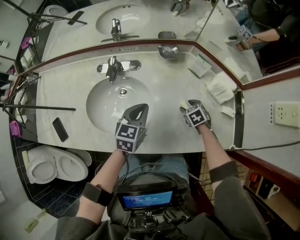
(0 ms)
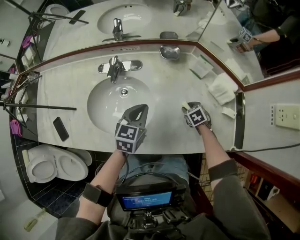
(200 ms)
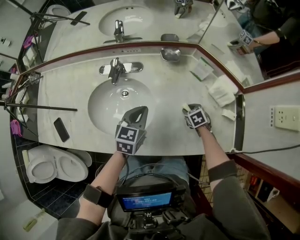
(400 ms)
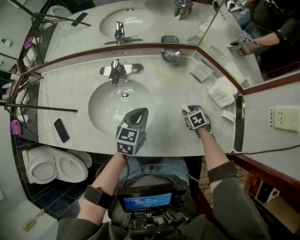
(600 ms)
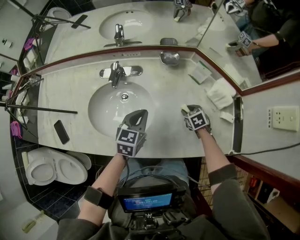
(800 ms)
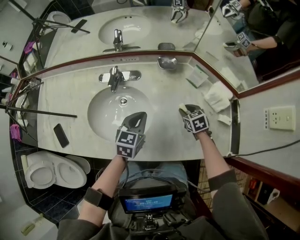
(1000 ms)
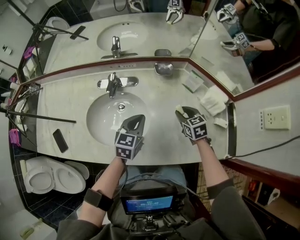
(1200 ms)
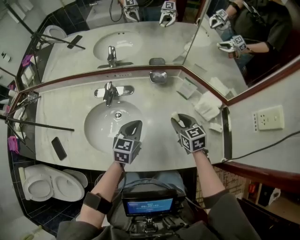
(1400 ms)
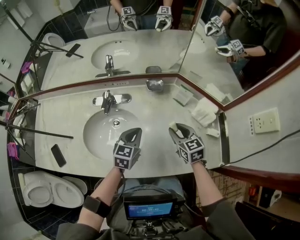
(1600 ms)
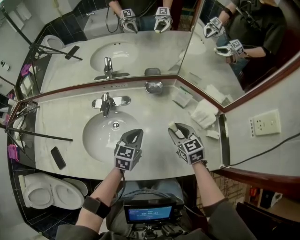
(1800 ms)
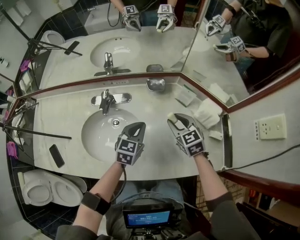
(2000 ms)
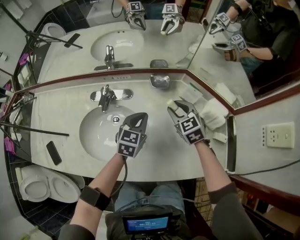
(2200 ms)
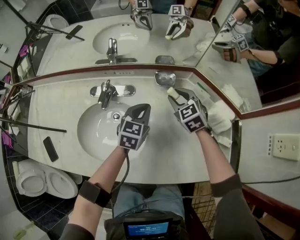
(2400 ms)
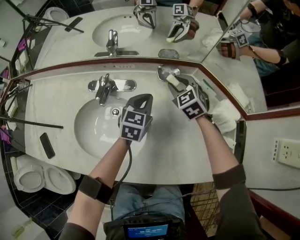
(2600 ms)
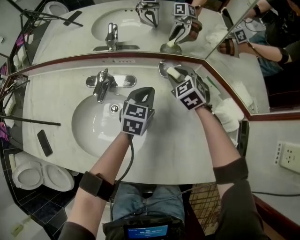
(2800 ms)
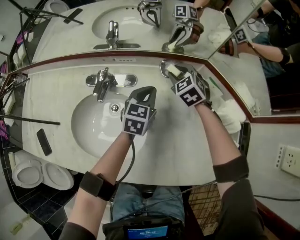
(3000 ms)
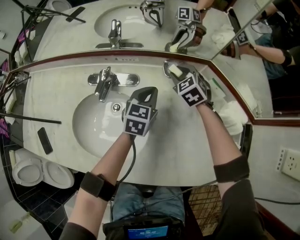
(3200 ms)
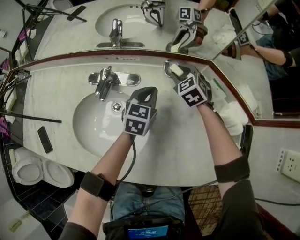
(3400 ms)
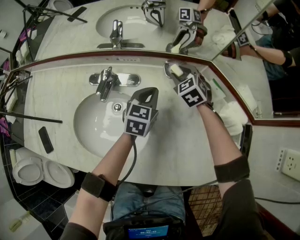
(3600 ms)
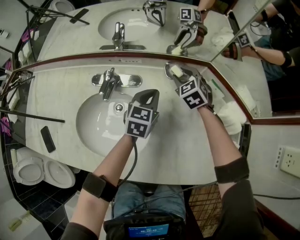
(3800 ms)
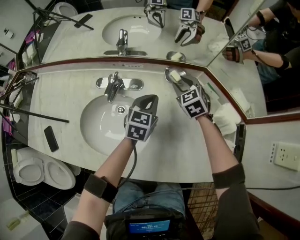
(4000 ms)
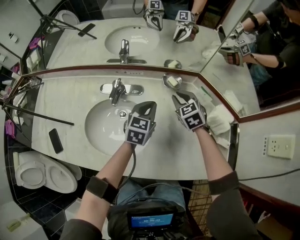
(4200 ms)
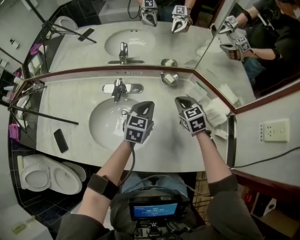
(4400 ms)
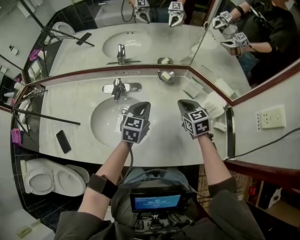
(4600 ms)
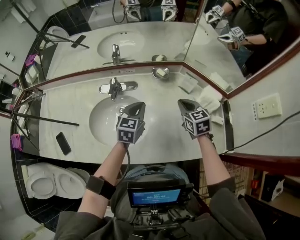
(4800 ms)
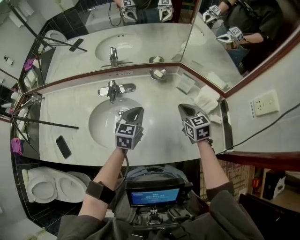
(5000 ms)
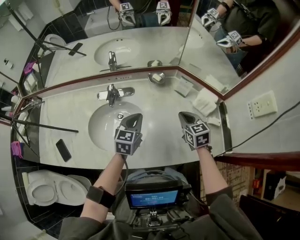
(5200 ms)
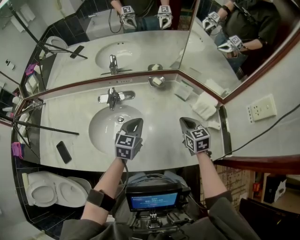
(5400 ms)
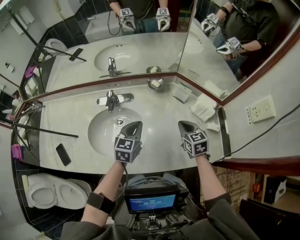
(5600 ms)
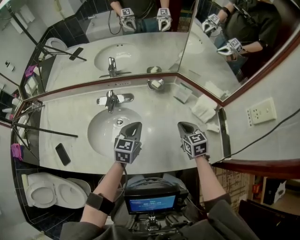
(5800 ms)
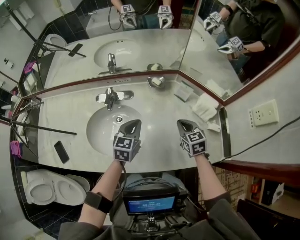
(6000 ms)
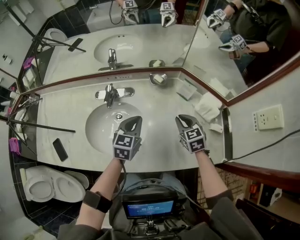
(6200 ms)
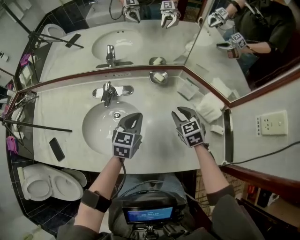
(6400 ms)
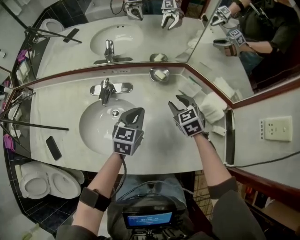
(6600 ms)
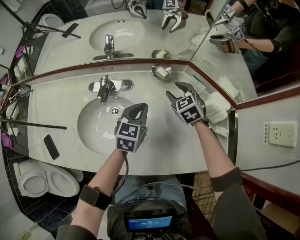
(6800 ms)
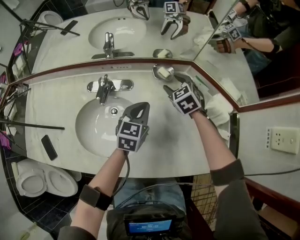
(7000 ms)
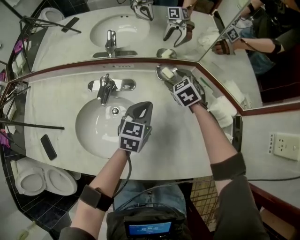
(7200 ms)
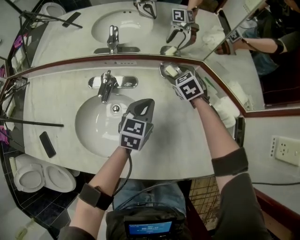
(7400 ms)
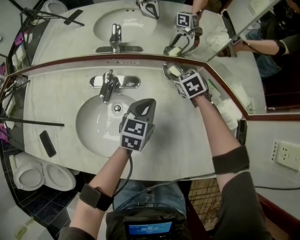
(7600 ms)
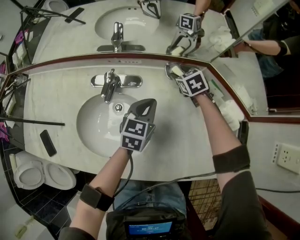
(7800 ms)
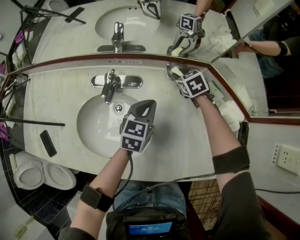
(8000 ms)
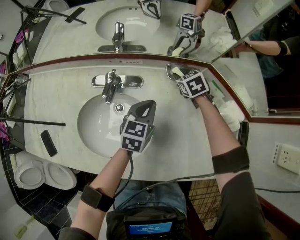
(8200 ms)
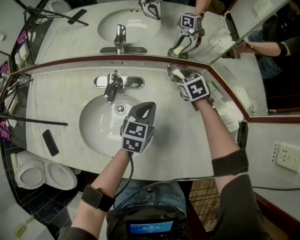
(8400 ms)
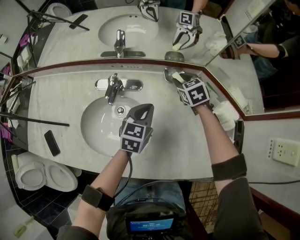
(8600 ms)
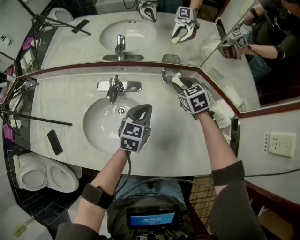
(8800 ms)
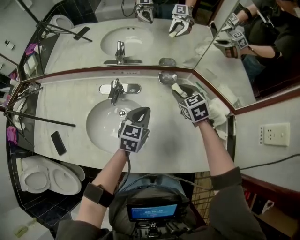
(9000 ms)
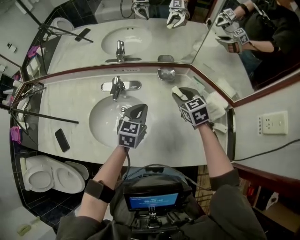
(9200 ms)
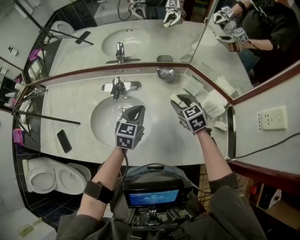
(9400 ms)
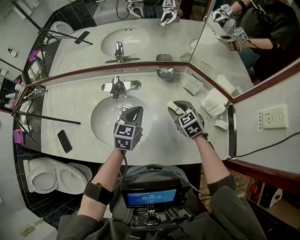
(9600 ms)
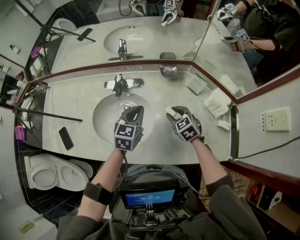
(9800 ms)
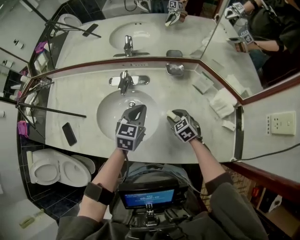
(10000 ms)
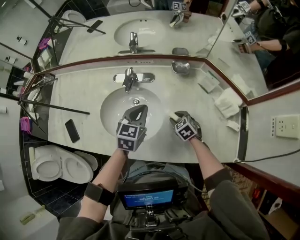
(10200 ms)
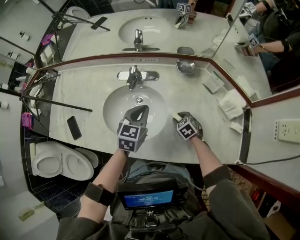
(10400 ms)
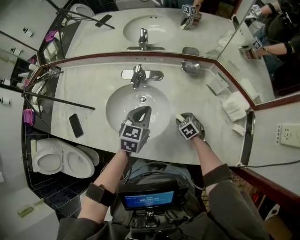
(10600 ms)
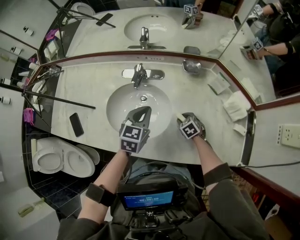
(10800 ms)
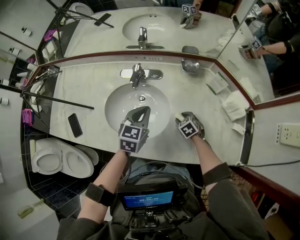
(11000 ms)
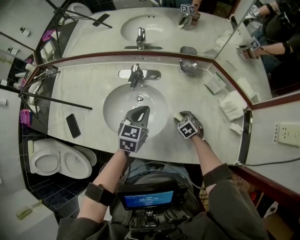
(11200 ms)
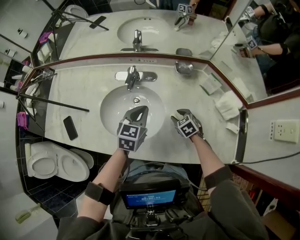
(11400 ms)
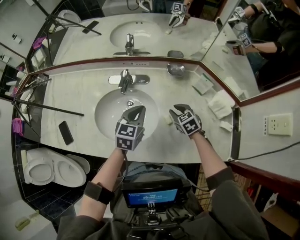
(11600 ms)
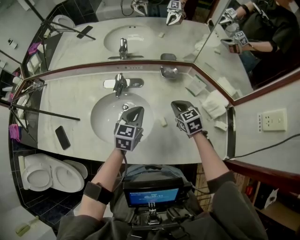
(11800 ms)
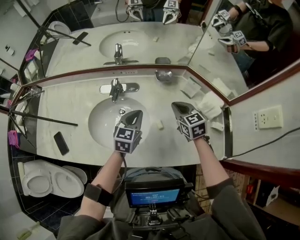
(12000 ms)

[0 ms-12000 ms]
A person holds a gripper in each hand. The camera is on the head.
0 ms to 1600 ms: The right gripper travels upward by roughly 20 cm, tilts its fingers approximately 30 degrees upward, and closes its fingers.
1600 ms to 3000 ms: The right gripper heads forward, covering roughly 25 cm, and rotates approximately 40 degrees, while the left gripper heads forward and downward, covering about 20 cm.
3000 ms to 4400 ms: The right gripper goes about 20 cm backward and upward, and closes up; the left gripper heads upward and backward, covering approximately 15 cm.
4400 ms to 6000 ms: The left gripper shifts approximately 10 cm backward. The right gripper shifts roughly 15 cm backward and to the right.
6000 ms to 7600 ms: The right gripper travels forward by about 25 cm, rotates some 20 degrees, and opens, while the left gripper heads forward and downward, covering some 15 cm.
7600 ms to 9000 ms: The right gripper is displaced upward and backward by about 15 cm, and closes. The left gripper travels upward and backward by roughly 10 cm.
9000 ms to 10400 ms: The right gripper goes some 25 cm downward, backward and to the left, and swivels roughly 20 degrees, while the left gripper heads to the left, covering roughly 10 cm.
10400 ms to 12000 ms: The right gripper moves upward, some 20 cm, turns by roughly 30 degrees, and closes up.

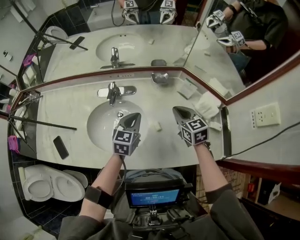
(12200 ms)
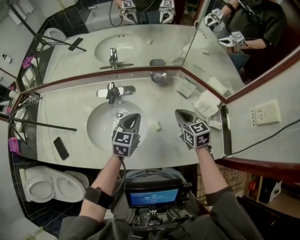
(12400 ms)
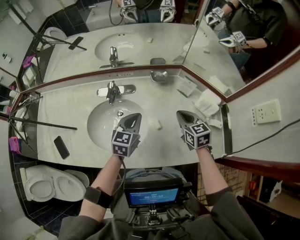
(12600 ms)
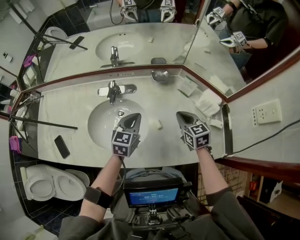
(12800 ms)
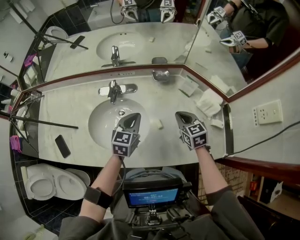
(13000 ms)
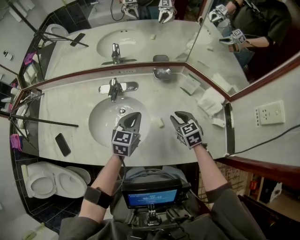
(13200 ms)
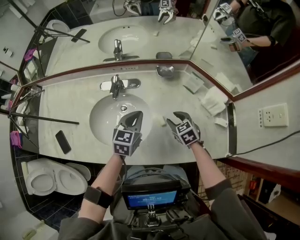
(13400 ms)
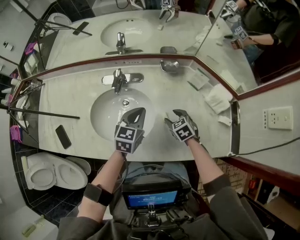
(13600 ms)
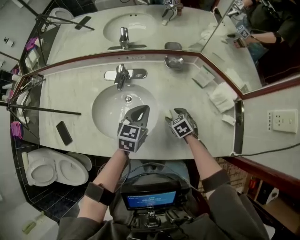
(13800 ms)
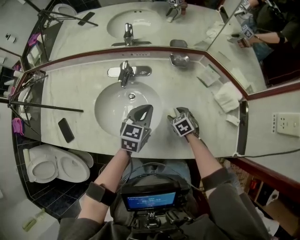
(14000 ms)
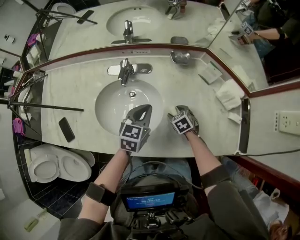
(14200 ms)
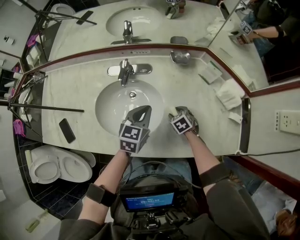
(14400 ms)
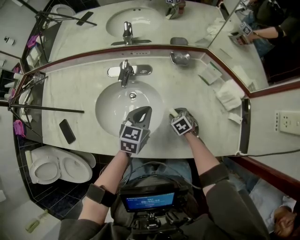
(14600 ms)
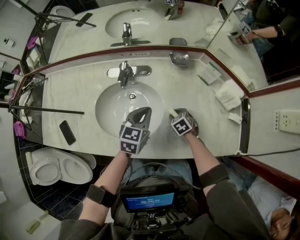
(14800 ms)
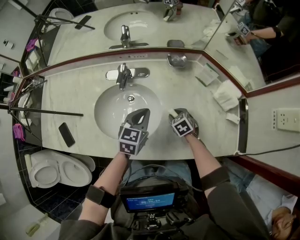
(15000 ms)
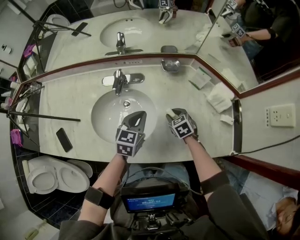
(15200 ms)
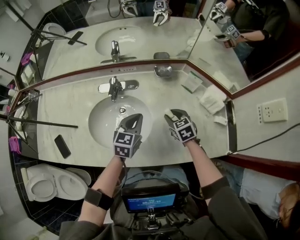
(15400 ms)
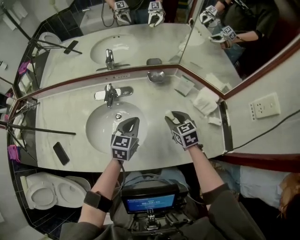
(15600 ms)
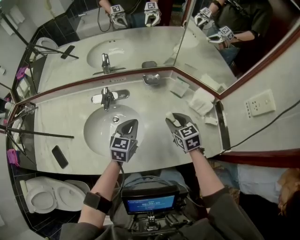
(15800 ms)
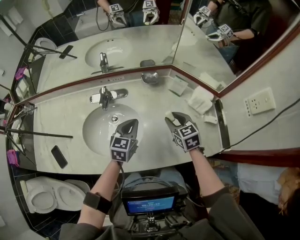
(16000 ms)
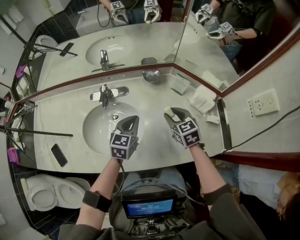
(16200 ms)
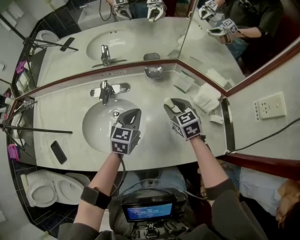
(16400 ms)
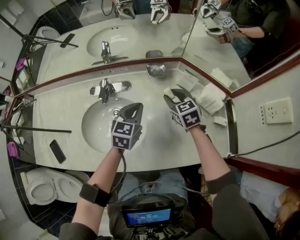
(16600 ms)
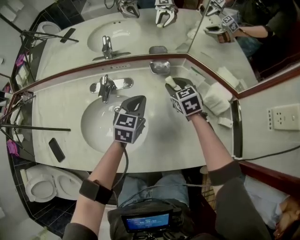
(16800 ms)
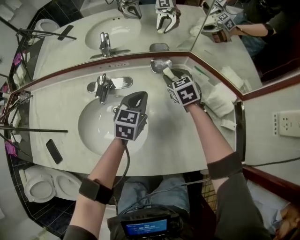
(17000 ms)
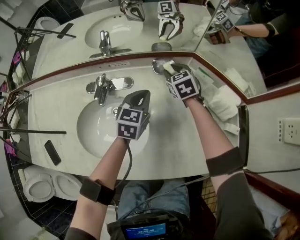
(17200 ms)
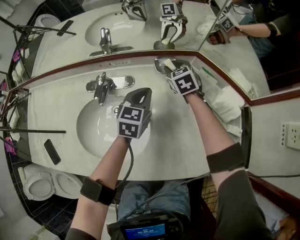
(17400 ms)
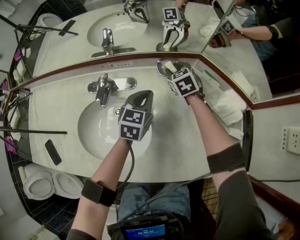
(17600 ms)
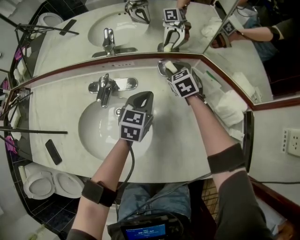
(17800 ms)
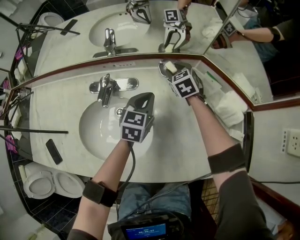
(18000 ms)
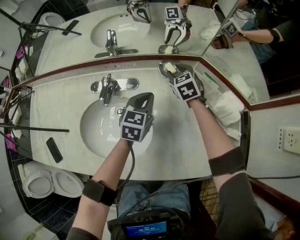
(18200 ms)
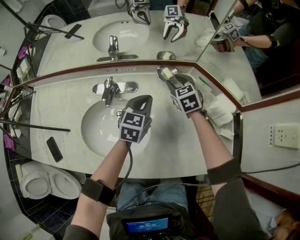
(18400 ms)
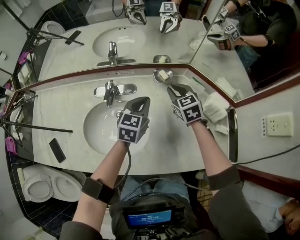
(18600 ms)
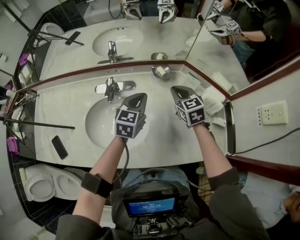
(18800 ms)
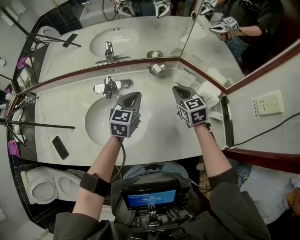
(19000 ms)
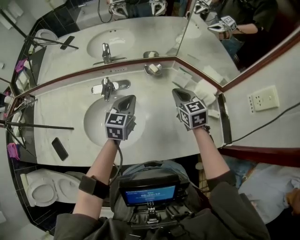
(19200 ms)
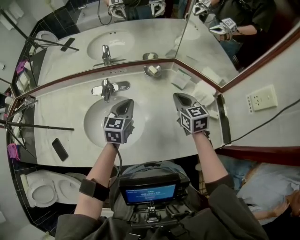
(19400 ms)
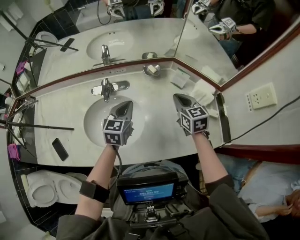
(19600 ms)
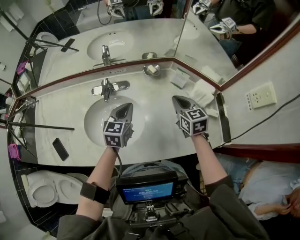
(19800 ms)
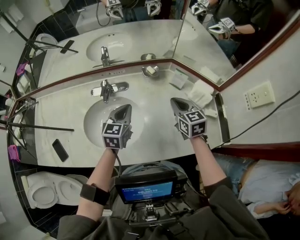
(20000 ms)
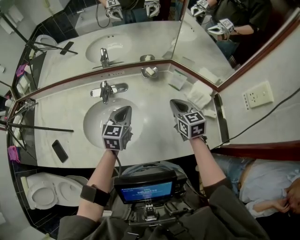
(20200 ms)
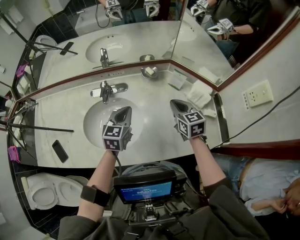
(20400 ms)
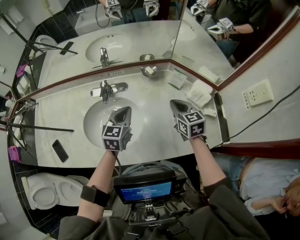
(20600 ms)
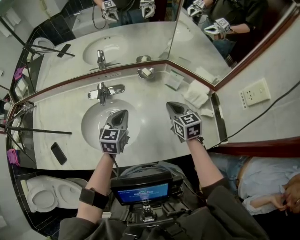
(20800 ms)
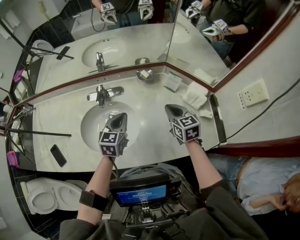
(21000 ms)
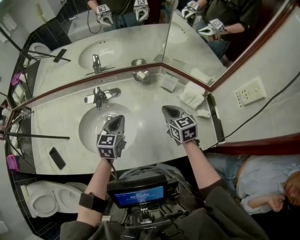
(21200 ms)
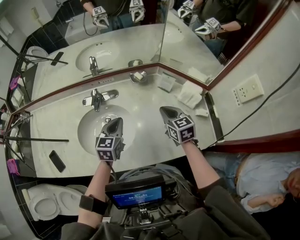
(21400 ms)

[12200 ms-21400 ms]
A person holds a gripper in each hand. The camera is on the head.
12200 ms to 13800 ms: The right gripper shifts some 20 cm downward, swivels about 30 degrees, and opens up.
13800 ms to 15200 ms: The right gripper closes up.
15200 ms to 16800 ms: The right gripper heads forward and upward, covering some 20 cm. Meanwhile the left gripper is displaced forward and to the right by about 10 cm.
16800 ms to 18400 ms: The right gripper heads forward, covering about 5 cm.
18400 ms to 19800 ms: The right gripper shifts some 20 cm backward and upward, rotates approximately 20 degrees, and closes its fingers. Meanwhile the left gripper heads backward and upward, covering about 15 cm.
19800 ms to 21400 ms: There are only small adjustments of the grippers.

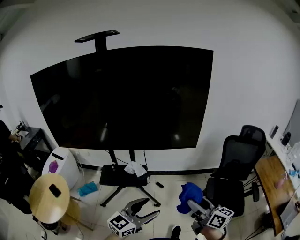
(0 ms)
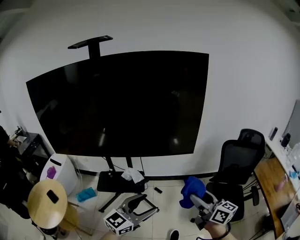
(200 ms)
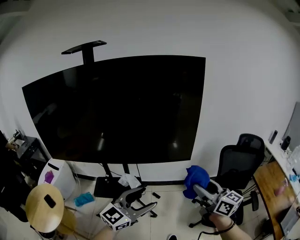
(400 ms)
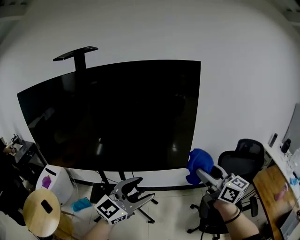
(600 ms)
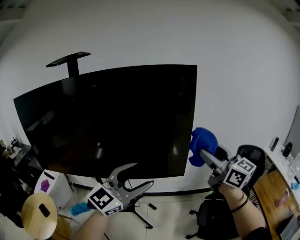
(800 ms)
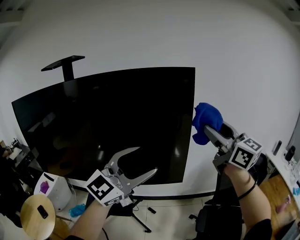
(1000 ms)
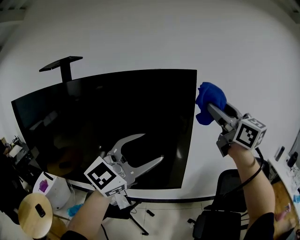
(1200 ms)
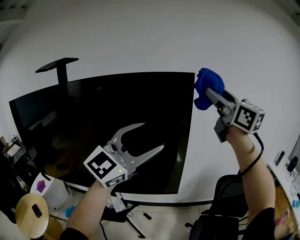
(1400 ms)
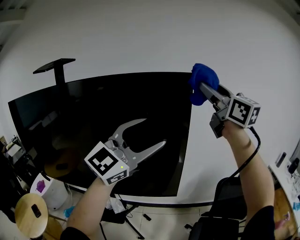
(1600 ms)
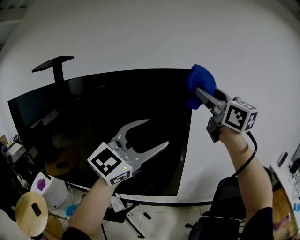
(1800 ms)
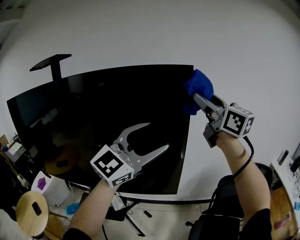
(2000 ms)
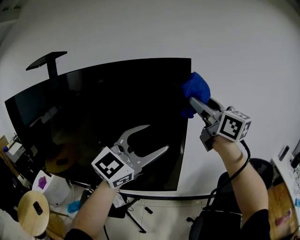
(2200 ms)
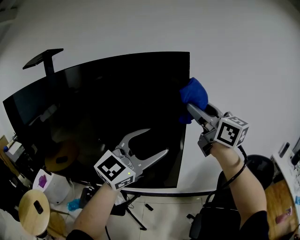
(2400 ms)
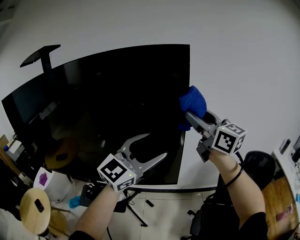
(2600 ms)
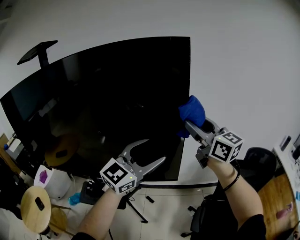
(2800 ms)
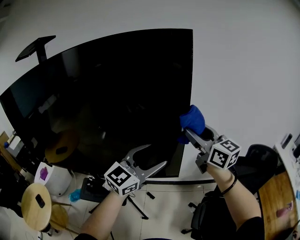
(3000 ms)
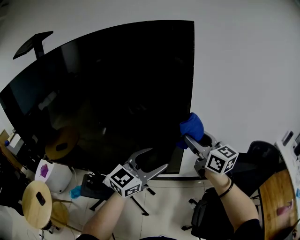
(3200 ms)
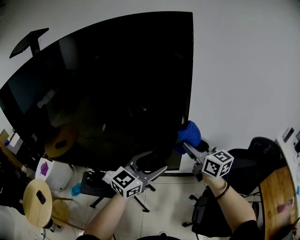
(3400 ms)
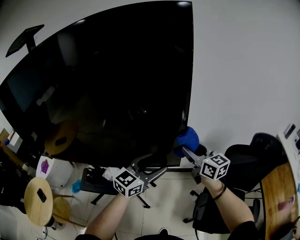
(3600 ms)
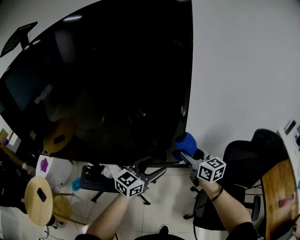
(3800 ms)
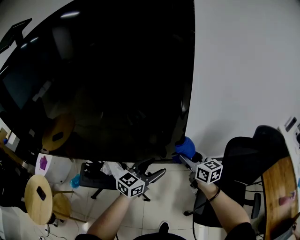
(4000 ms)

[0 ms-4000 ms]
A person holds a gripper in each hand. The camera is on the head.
0 ms to 1400 ms: Both grippers move upward and forward, some 60 cm. The left gripper turns by approximately 40 degrees. The right gripper swivels approximately 40 degrees.
1400 ms to 2600 ms: The left gripper shifts approximately 15 cm downward and forward; the right gripper goes some 15 cm downward.
2600 ms to 4000 ms: Both grippers move downward, approximately 35 cm. The right gripper turns by approximately 30 degrees. The left gripper rotates roughly 30 degrees.
